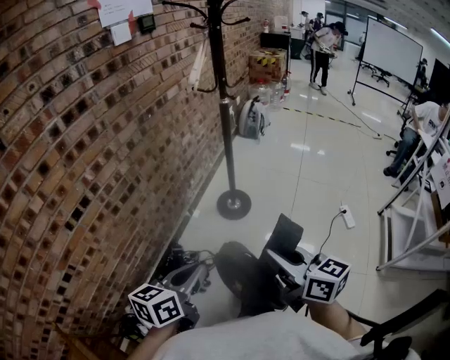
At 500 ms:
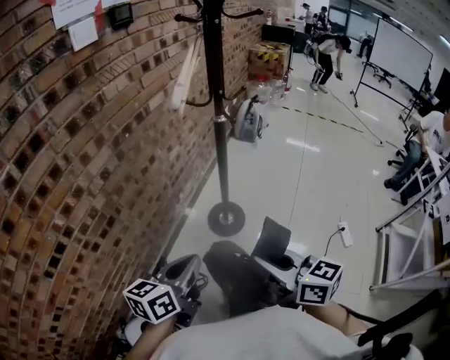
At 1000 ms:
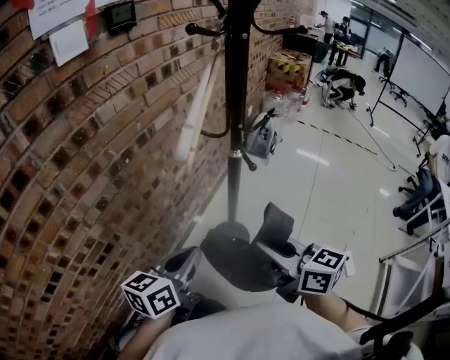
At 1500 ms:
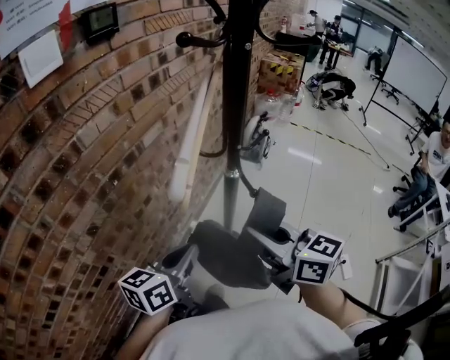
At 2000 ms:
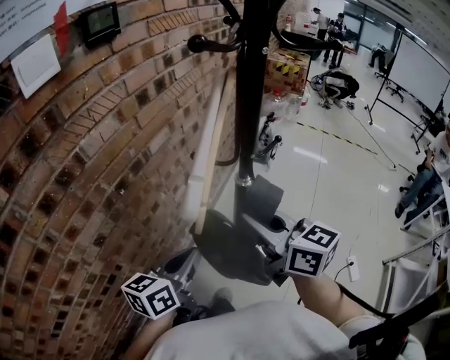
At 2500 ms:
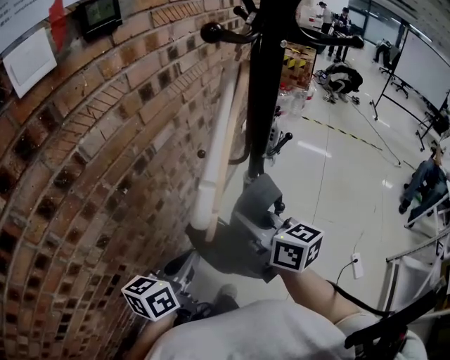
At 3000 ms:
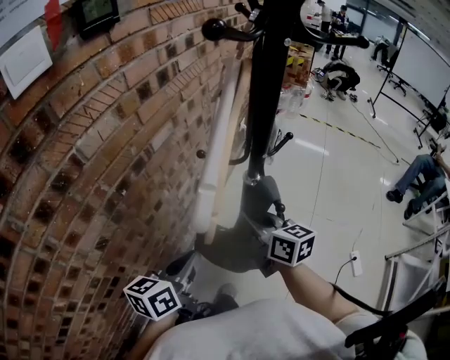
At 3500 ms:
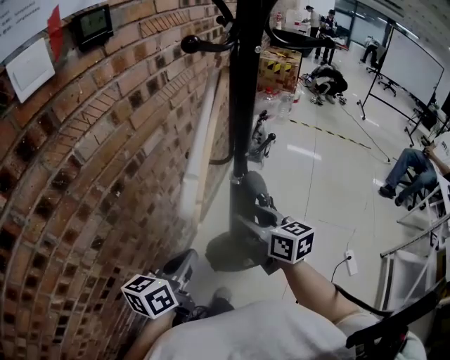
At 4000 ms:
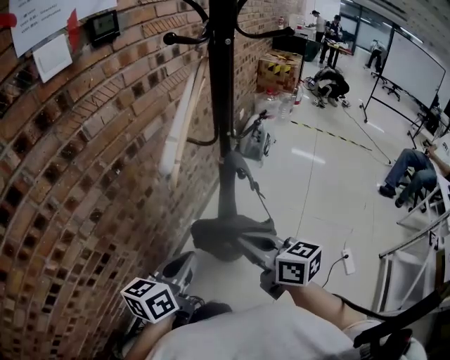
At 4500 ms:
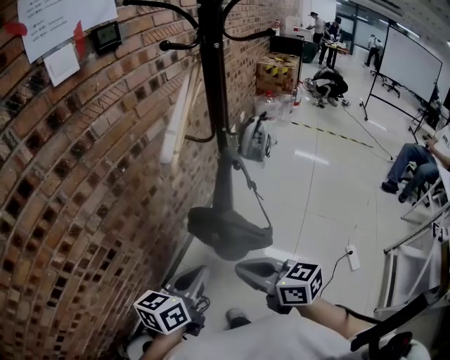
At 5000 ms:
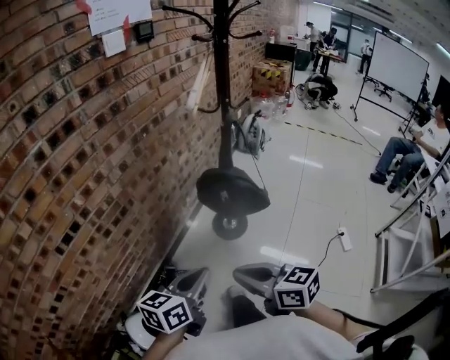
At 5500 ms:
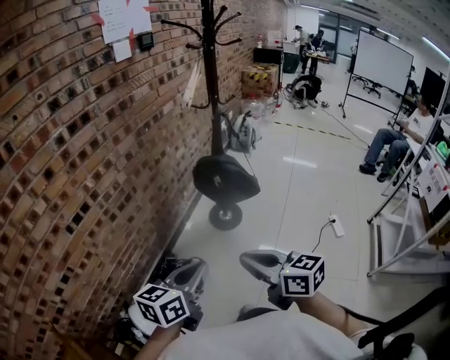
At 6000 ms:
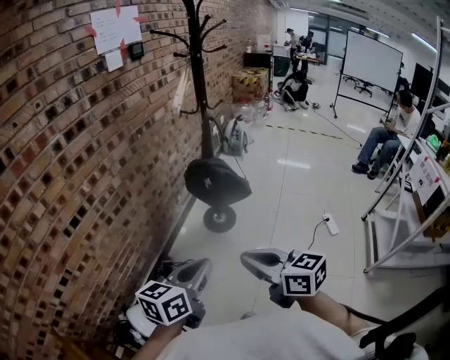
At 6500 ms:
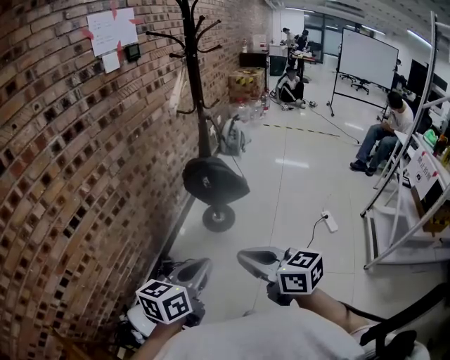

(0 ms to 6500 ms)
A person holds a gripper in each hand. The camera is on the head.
0 ms - 2000 ms: The two grippers travel together, forward, roughly 50 cm.
2000 ms - 4500 ms: The left gripper heads backward, covering about 15 cm. The right gripper shifts about 25 cm backward and downward, and opens and closes again.
4500 ms - 6500 ms: Both grippers travel together backward, about 40 cm.

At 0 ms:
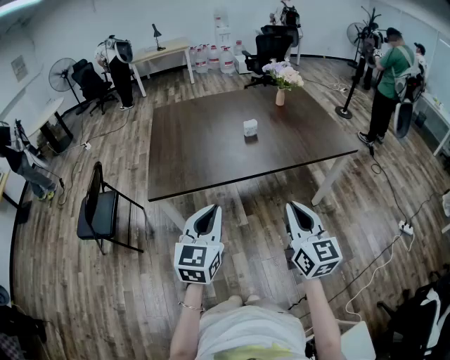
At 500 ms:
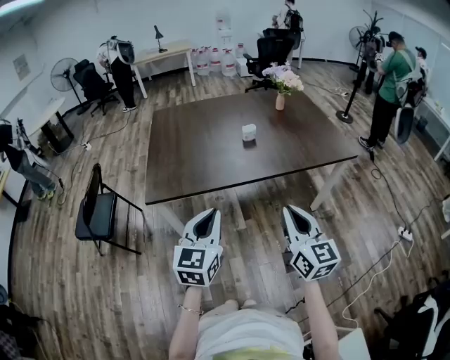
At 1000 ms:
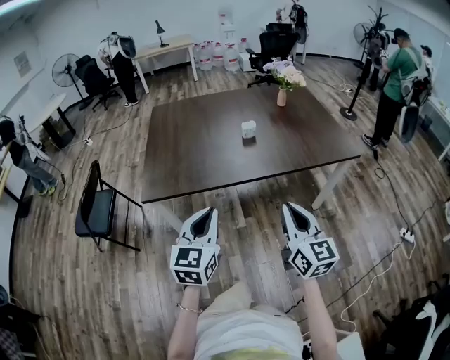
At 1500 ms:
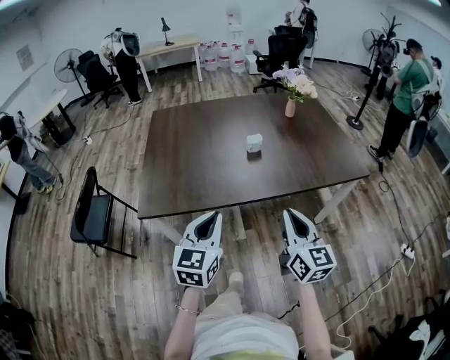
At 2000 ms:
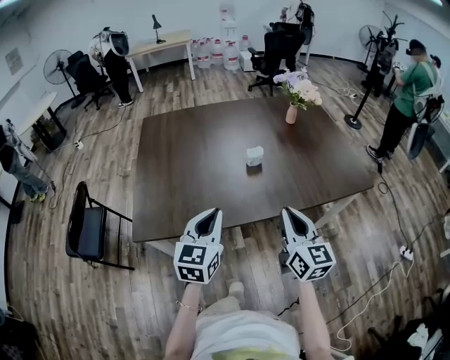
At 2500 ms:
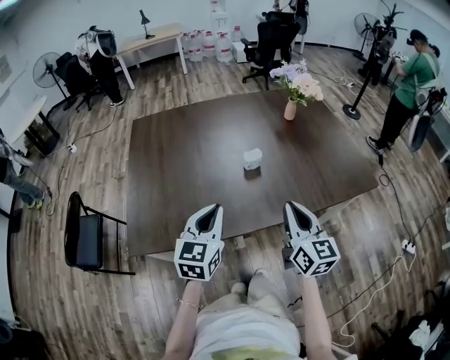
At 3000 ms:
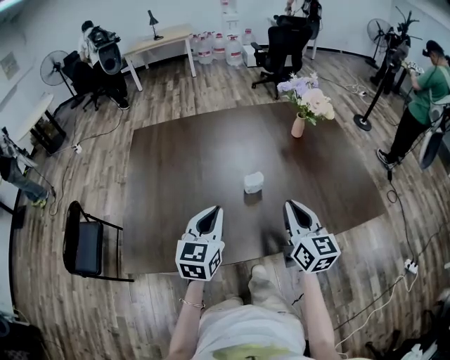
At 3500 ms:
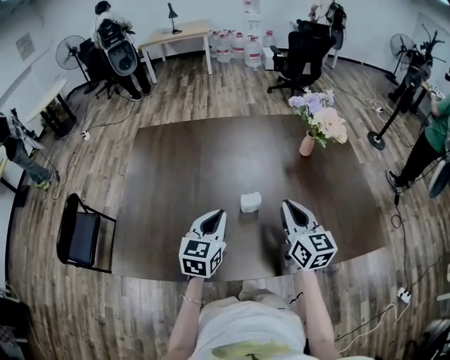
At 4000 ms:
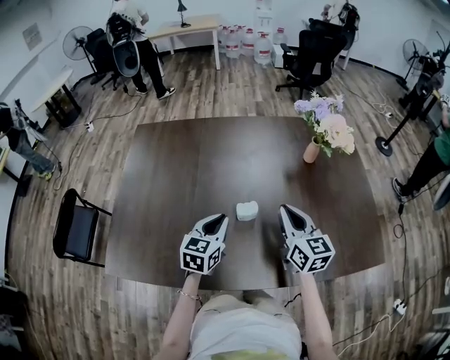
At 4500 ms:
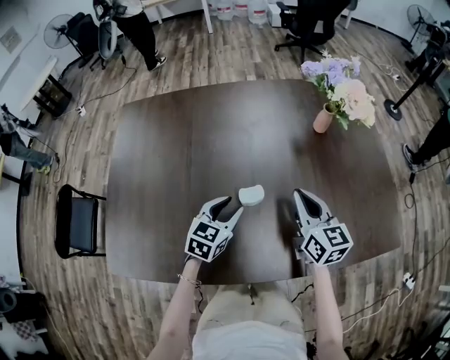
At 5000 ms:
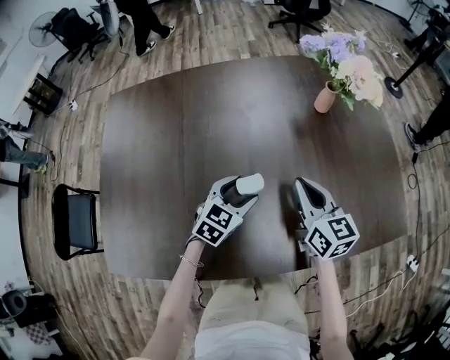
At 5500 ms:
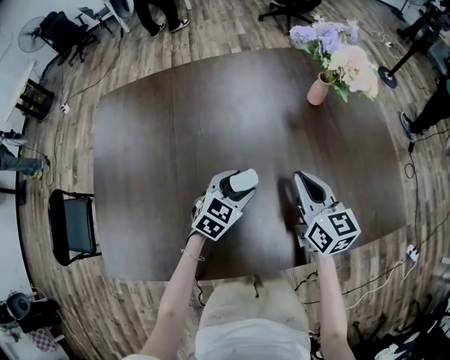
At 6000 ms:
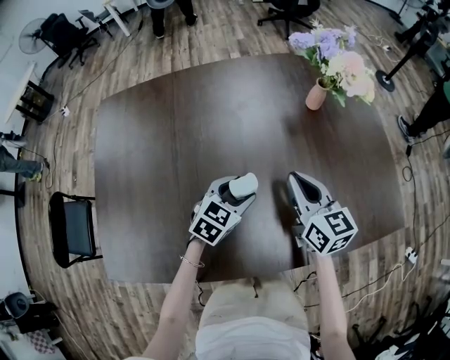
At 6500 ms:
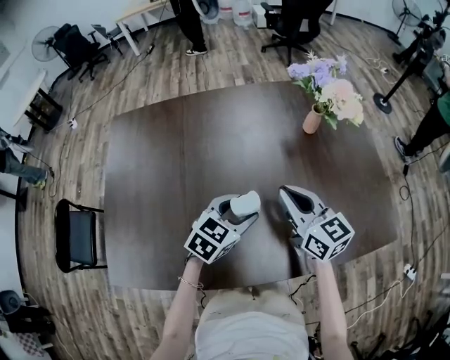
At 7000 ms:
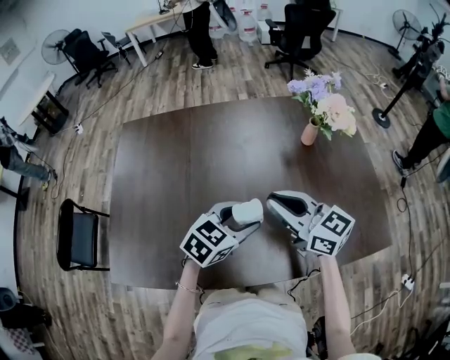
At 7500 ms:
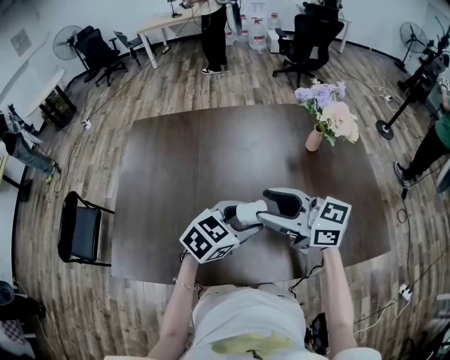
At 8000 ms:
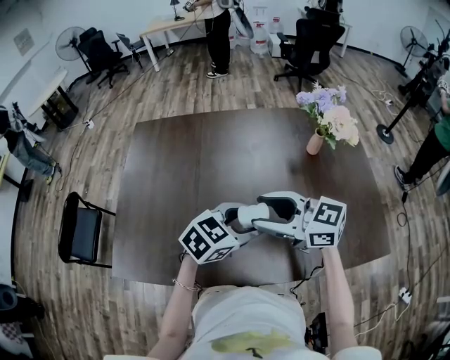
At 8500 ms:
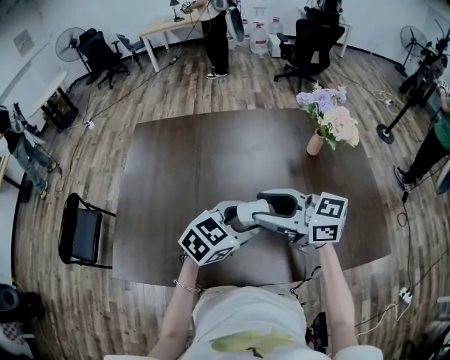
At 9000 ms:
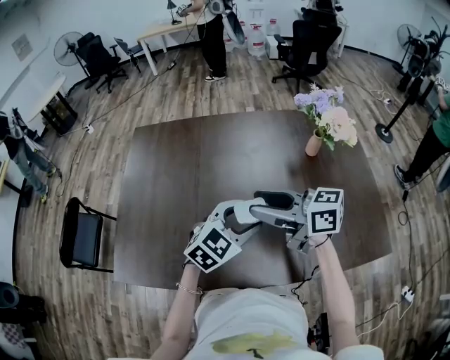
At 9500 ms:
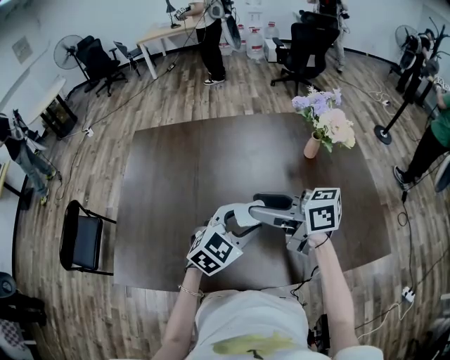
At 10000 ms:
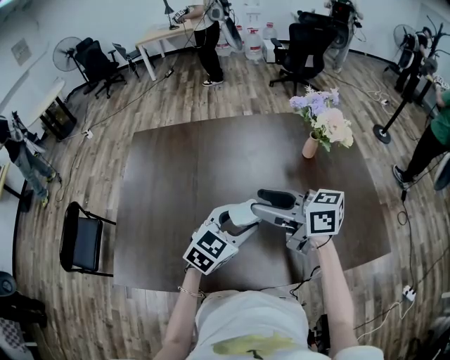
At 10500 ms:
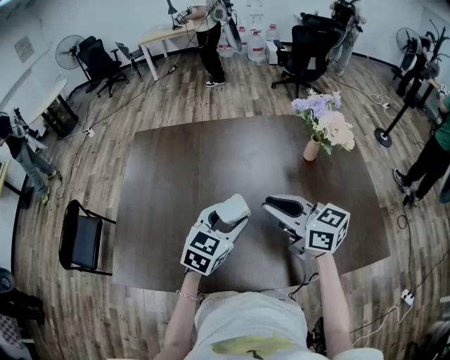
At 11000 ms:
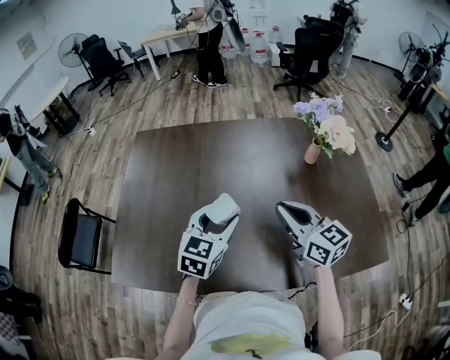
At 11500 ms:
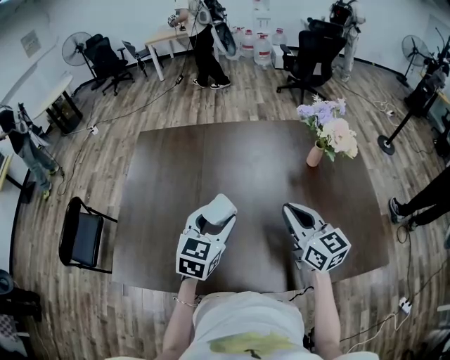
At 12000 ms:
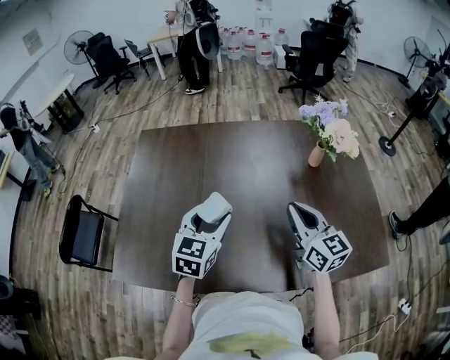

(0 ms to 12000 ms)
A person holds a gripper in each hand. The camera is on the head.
0 ms - 2000 ms: Both grippers travel together forward, about 25 cm.
2000 ms - 4000 ms: The right gripper moves forward, some 30 cm, while the left gripper travels forward and downward by roughly 30 cm.
4000 ms - 6000 ms: The left gripper heads downward, to the right and forward, covering some 10 cm, changes its angle by roughly 30 degrees, and opens. The right gripper ends up some 5 cm from where it was.
6000 ms - 8000 ms: The left gripper is displaced upward by approximately 15 cm, while the right gripper changes place by approximately 20 cm, swivels about 50 degrees, and opens.
8000 ms - 10000 ms: The right gripper swivels approximately 20 degrees.
10000 ms - 12000 ms: The right gripper moves to the right, some 10 cm, rotates some 40 degrees, and closes, while the left gripper goes some 10 cm to the left, and changes its angle by approximately 30 degrees.

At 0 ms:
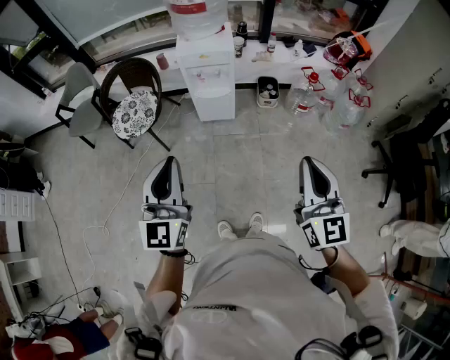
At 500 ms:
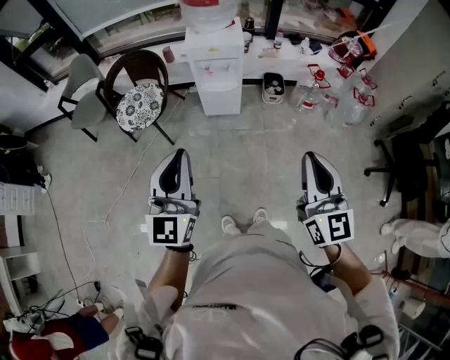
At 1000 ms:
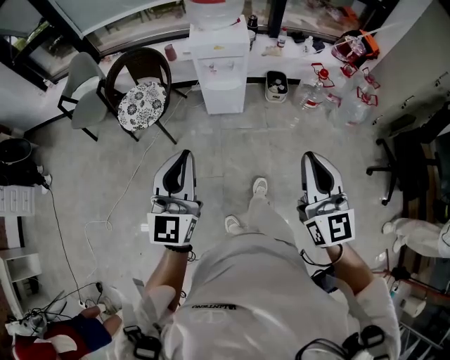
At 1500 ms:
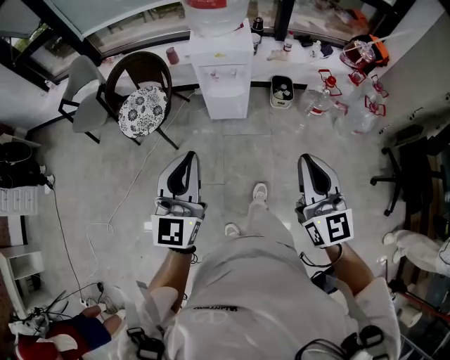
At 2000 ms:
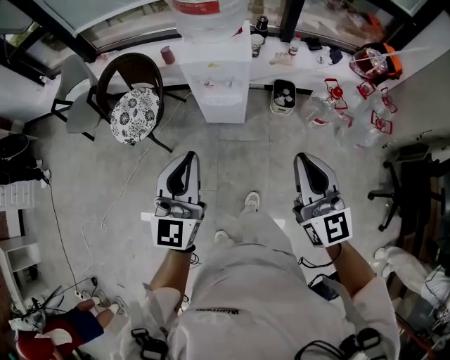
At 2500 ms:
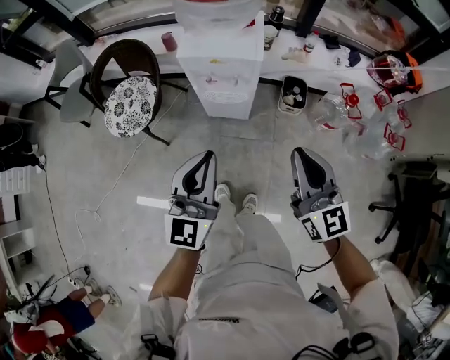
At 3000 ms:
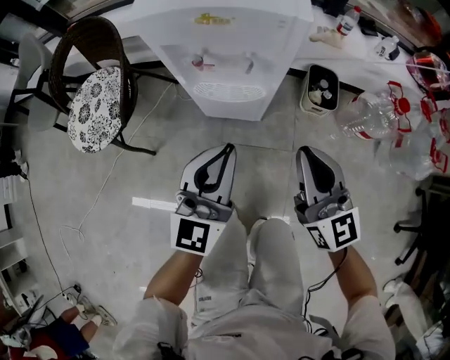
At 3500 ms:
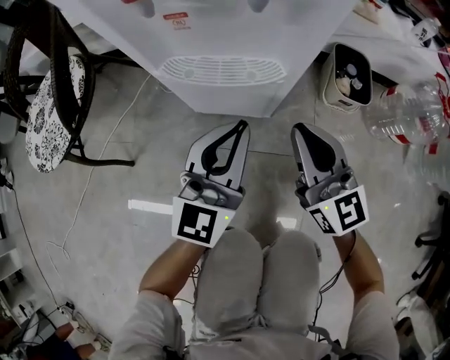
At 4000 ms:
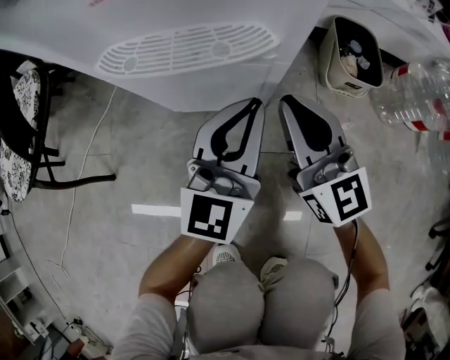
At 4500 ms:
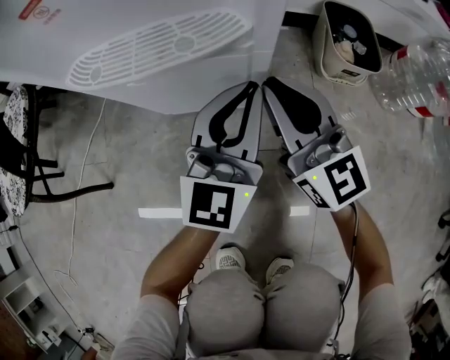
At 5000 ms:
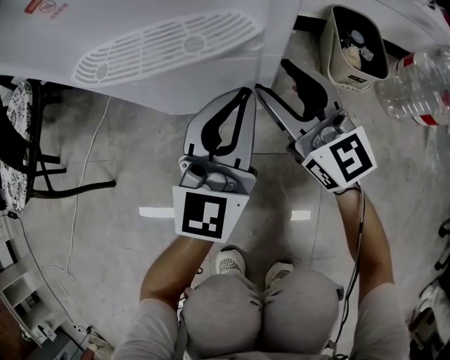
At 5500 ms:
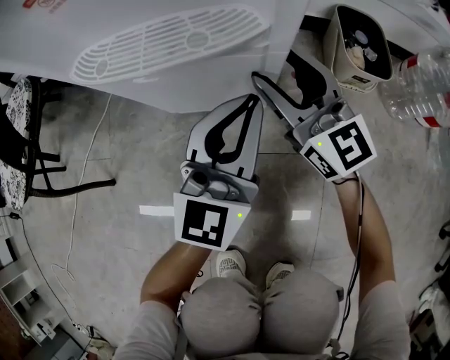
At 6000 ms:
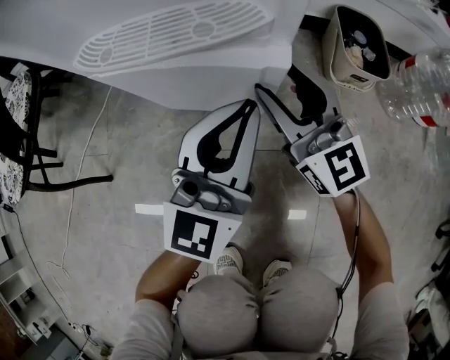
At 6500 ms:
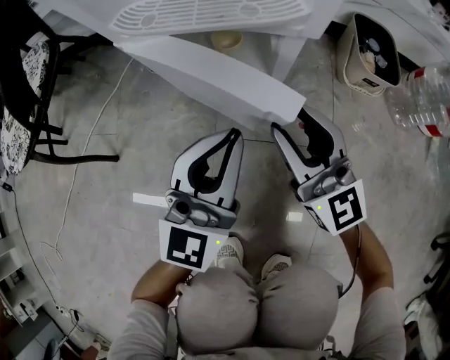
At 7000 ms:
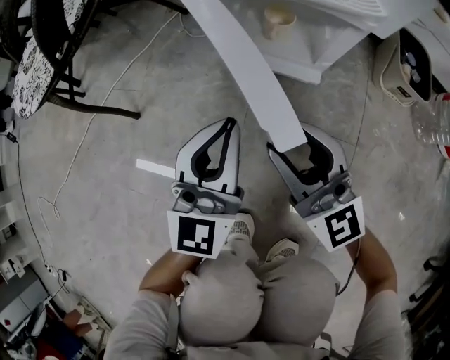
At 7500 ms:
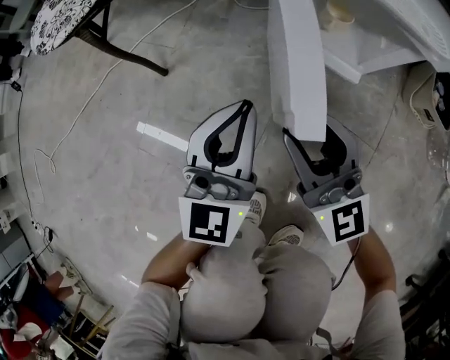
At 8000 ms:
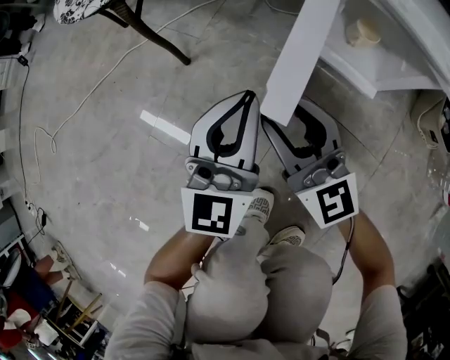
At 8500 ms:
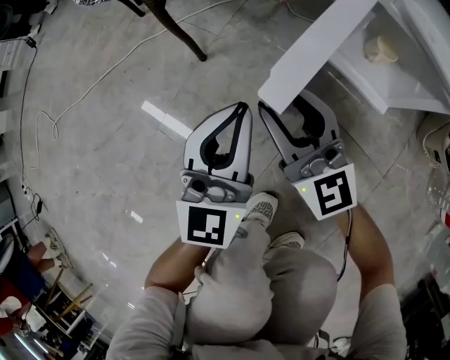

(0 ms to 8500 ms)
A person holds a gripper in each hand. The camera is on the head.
0 ms - 2000 ms: The two grippers go approximately 20 cm forward.
2000 ms - 4000 ms: Both grippers are carried forward, roughly 40 cm. The grippers both shift downward by roughly 70 cm.
4000 ms - 6500 ms: The right gripper goes roughly 5 cm backward, and opens its fingers. The left gripper is displaced backward and to the left by some 10 cm.
6500 ms - 8500 ms: The right gripper changes place by some 35 cm, and rotates about 30 degrees. The left gripper moves roughly 30 cm, and changes its angle by about 40 degrees.
